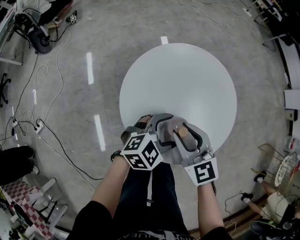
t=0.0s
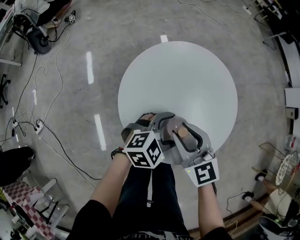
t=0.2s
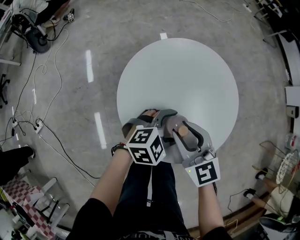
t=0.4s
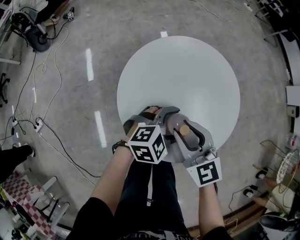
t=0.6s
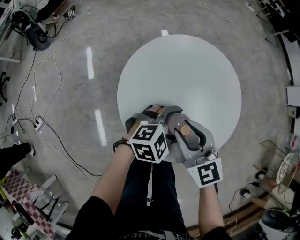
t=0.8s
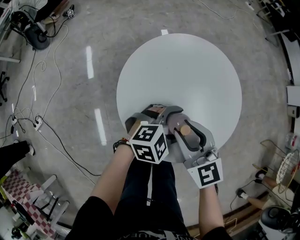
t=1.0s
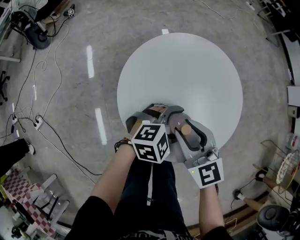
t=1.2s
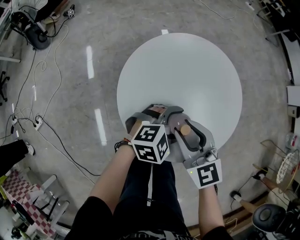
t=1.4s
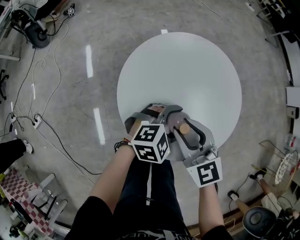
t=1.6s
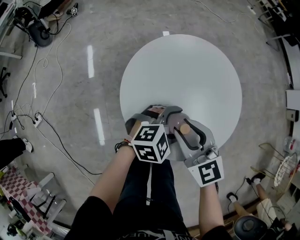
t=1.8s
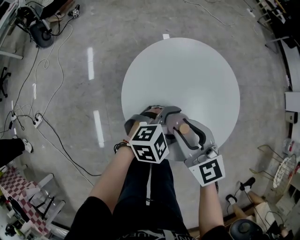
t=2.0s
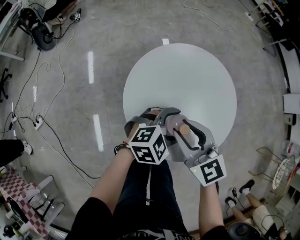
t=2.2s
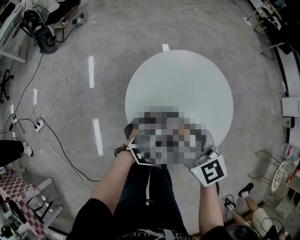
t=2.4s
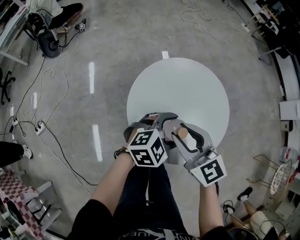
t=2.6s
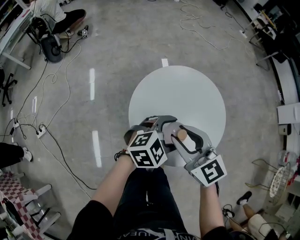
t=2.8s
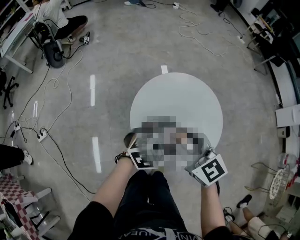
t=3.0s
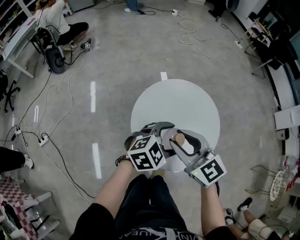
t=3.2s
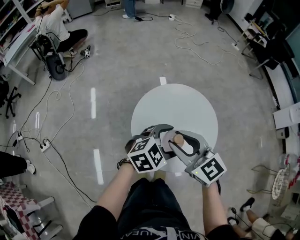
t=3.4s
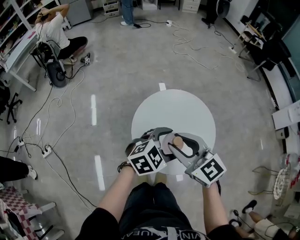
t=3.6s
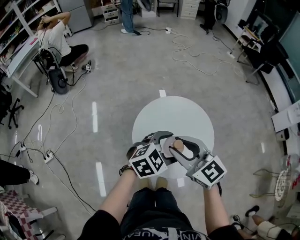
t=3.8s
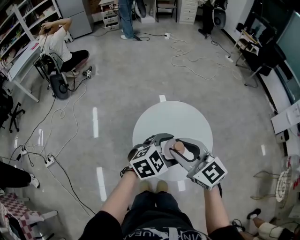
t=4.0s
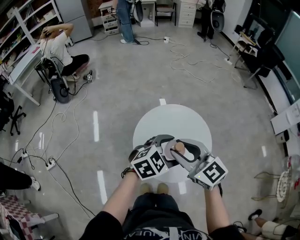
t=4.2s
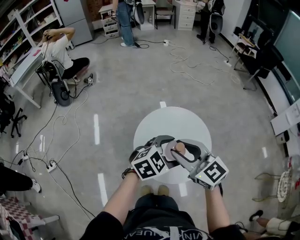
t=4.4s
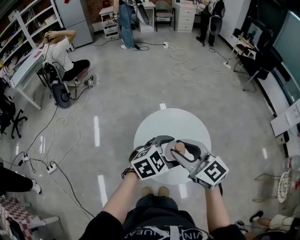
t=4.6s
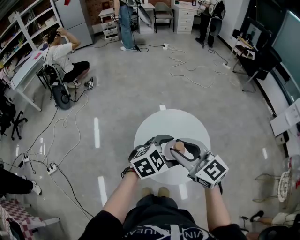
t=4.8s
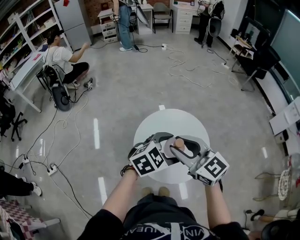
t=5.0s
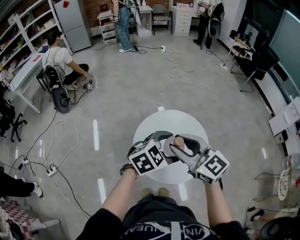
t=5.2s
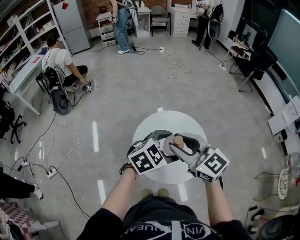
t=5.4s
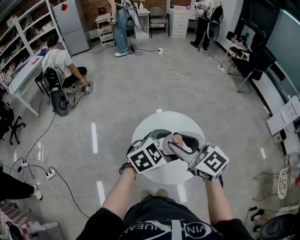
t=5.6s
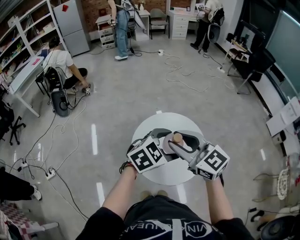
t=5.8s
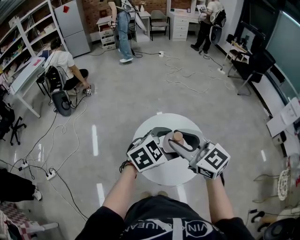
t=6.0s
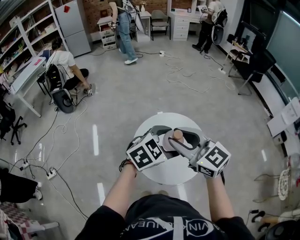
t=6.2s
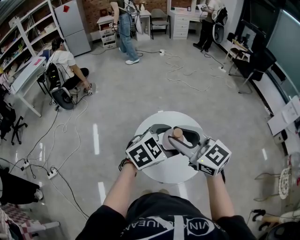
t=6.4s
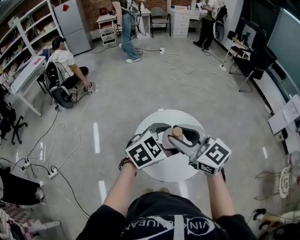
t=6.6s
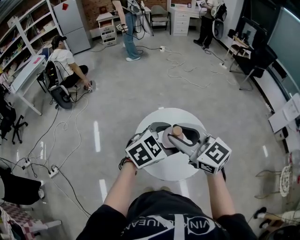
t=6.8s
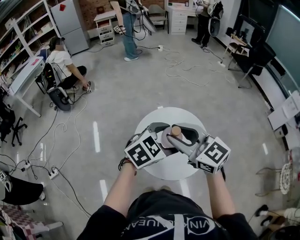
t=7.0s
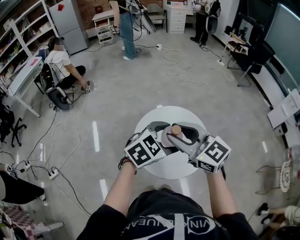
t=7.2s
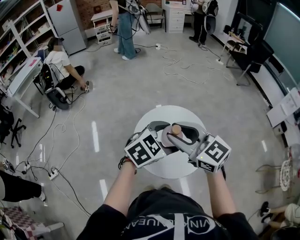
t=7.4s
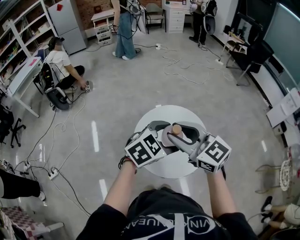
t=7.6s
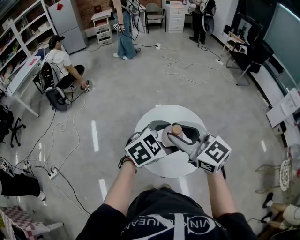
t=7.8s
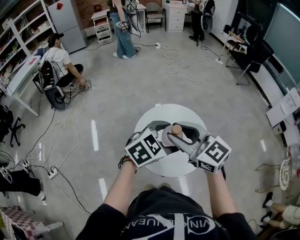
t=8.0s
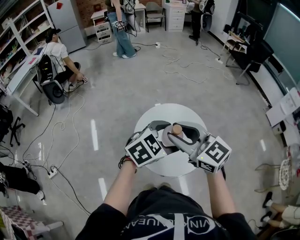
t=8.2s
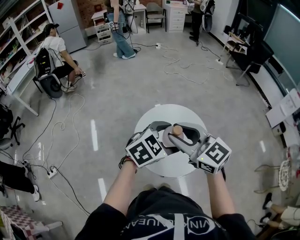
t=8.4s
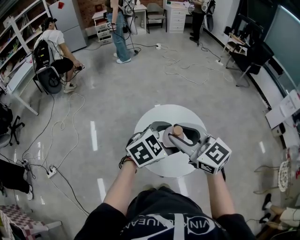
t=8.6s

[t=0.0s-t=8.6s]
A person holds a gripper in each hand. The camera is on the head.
t=0.0s to t=1.4s: The grippers stay close to where they were, moving slightly.
t=1.4s to t=2.8s: The two grippers go approximately 10 cm upward.
t=2.8s to t=4.4s: Both grippers travel together upward, roughly 15 cm.
t=4.4s to t=5.8s: Both grippers travel together upward, roughly 5 cm.
t=5.8s to t=7.2s: The grippers stay close to where they were, moving slightly.
t=7.2s to t=8.6s: The two grippers keep their place.

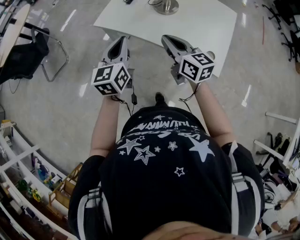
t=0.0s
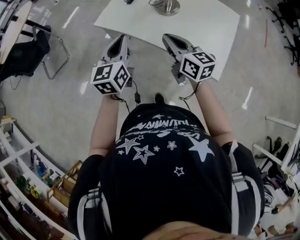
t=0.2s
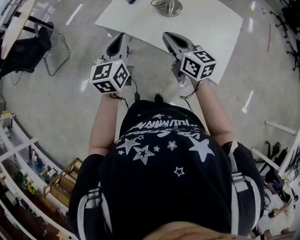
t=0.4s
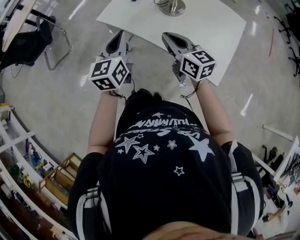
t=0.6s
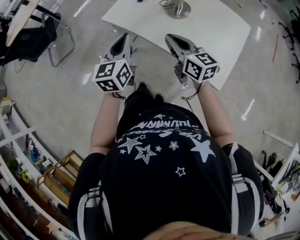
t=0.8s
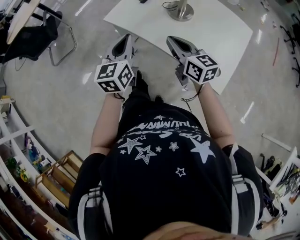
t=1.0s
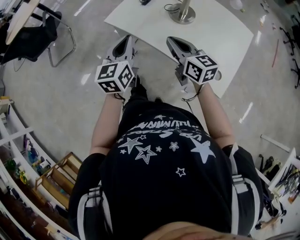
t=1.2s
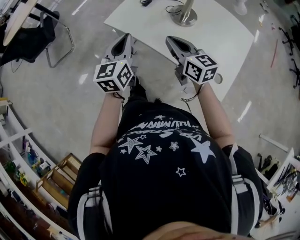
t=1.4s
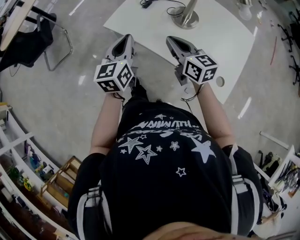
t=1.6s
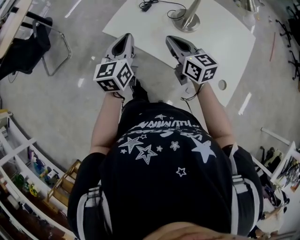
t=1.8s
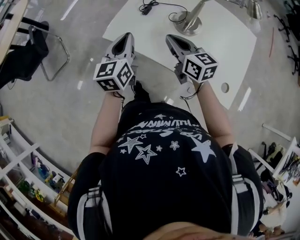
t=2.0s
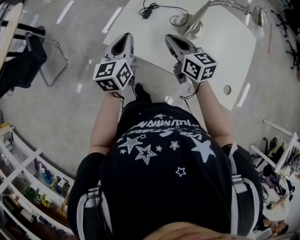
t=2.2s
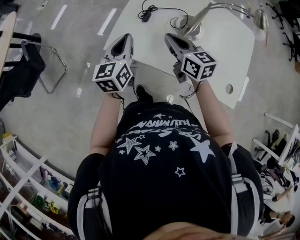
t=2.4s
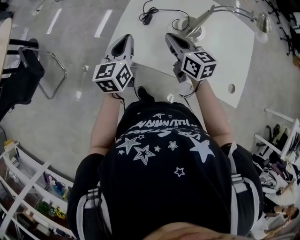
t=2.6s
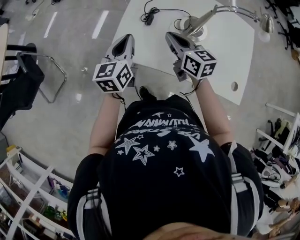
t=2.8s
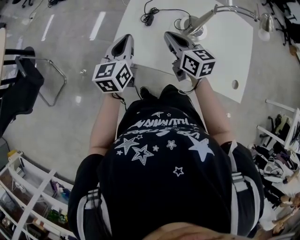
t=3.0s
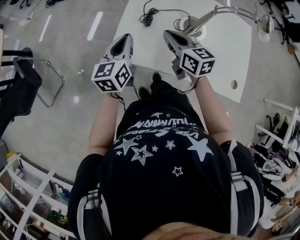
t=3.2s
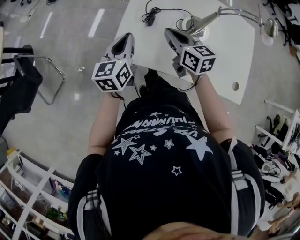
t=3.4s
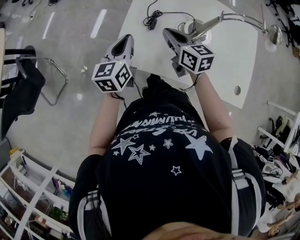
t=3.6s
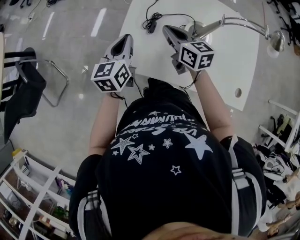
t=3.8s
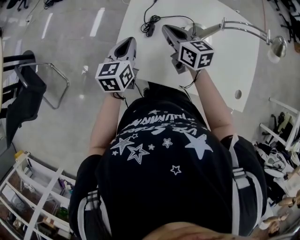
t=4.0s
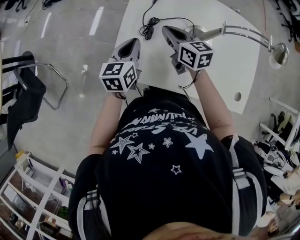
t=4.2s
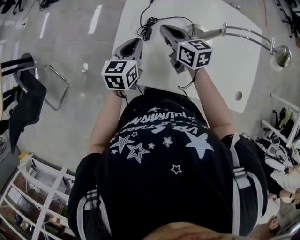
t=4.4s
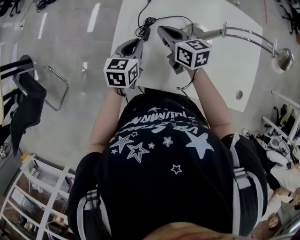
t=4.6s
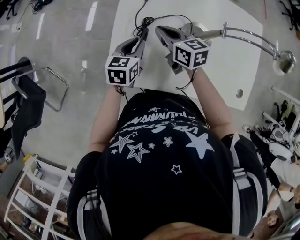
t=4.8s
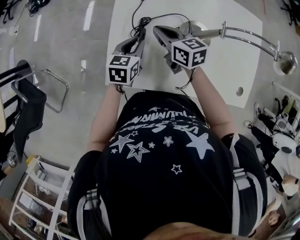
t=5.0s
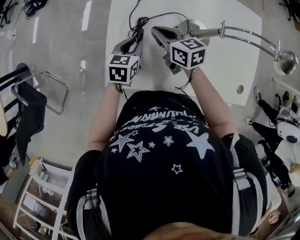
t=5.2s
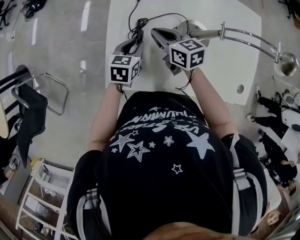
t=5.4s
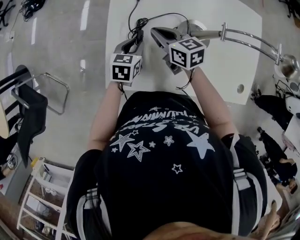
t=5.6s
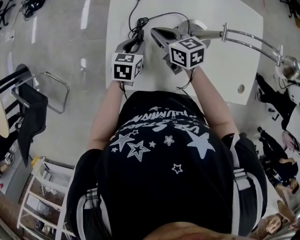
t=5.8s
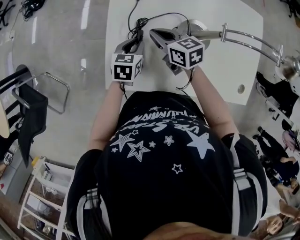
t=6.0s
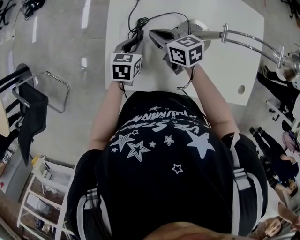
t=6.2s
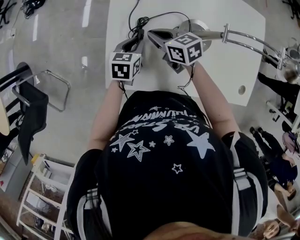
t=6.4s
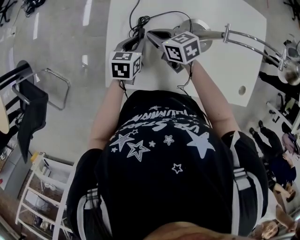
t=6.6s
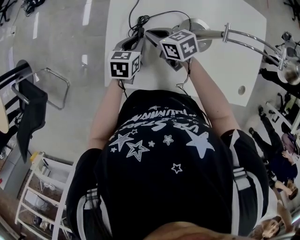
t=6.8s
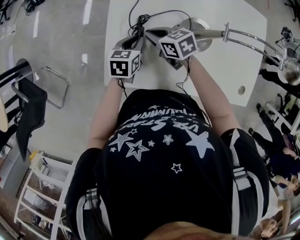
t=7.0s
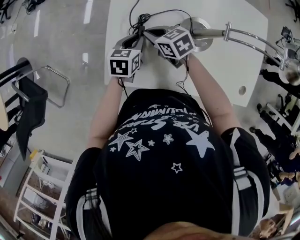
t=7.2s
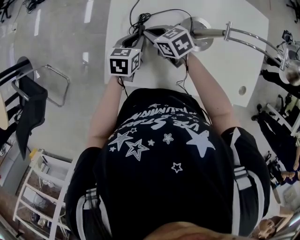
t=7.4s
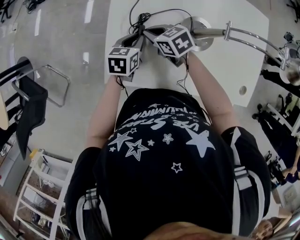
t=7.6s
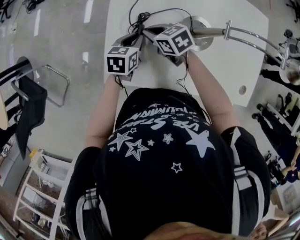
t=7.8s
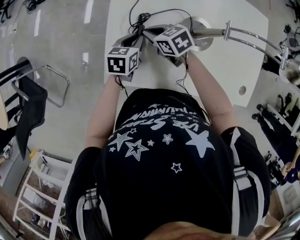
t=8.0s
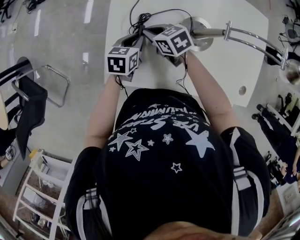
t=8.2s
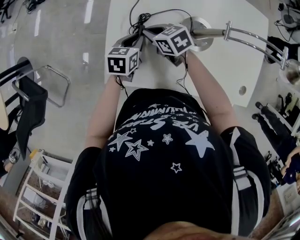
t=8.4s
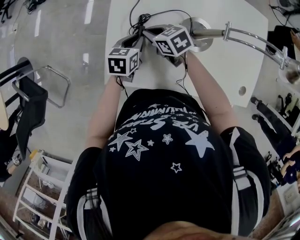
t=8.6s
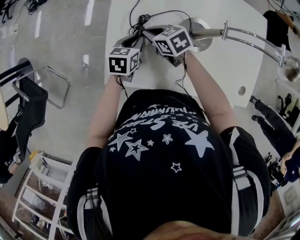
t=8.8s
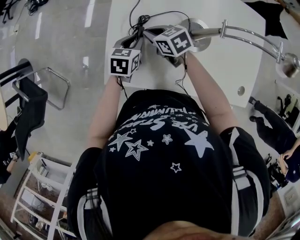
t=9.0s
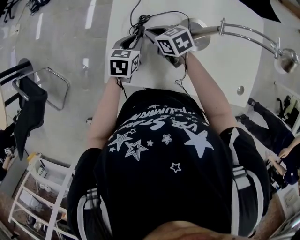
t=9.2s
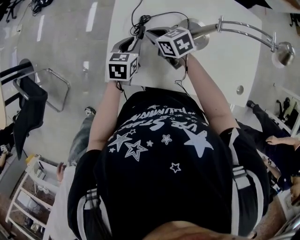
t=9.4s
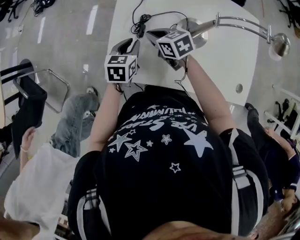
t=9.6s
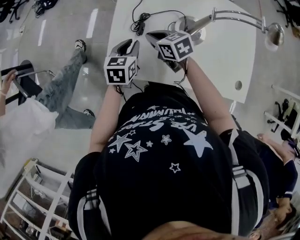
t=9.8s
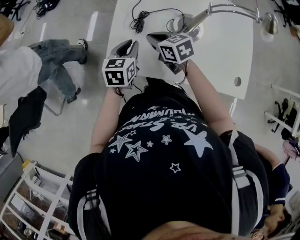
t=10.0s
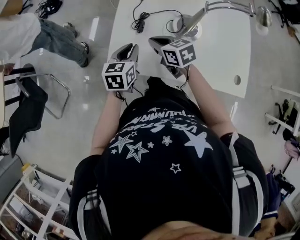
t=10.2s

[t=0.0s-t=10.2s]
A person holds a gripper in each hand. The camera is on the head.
t=0.0s to t=1.4s: Both grippers move forward, some 5 cm.
t=1.4s to t=3.0s: The grippers both shift forward by roughly 20 cm. The left gripper rotates roughly 20 degrees, while the right gripper swivels about 20 degrees.
t=3.0s to t=4.4s: The left gripper goes roughly 10 cm forward, downward and to the right, while the right gripper heads forward, covering some 10 cm.
t=4.4s to t=5.8s: The right gripper travels downward by about 5 cm, while the left gripper is displaced downward by some 10 cm, and changes its angle by approximately 20 degrees.
t=5.8s to t=7.2s: The right gripper shifts by about 5 cm.
t=7.2s to t=8.8s: Both grippers stay put.
t=8.8s to t=10.2s: The left gripper is displaced backward, upward and to the left by some 15 cm. Meanwhile the right gripper shifts some 10 cm backward and upward.

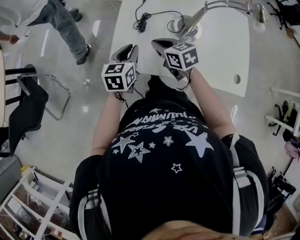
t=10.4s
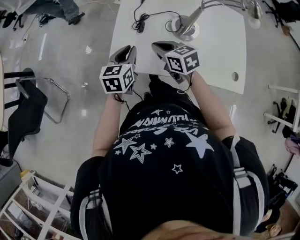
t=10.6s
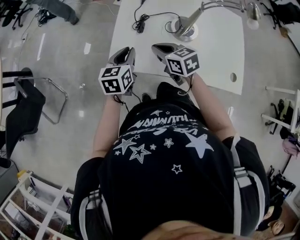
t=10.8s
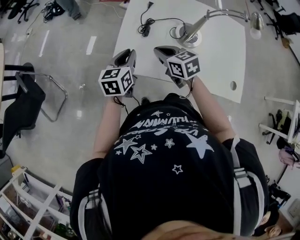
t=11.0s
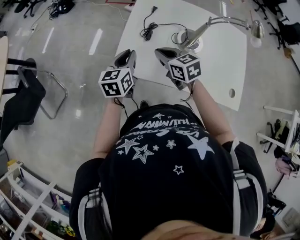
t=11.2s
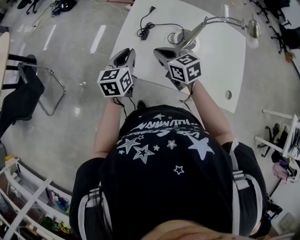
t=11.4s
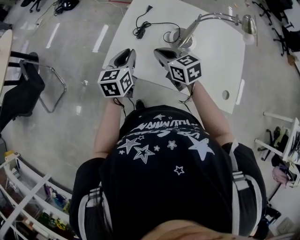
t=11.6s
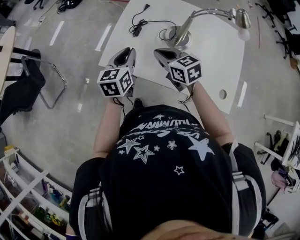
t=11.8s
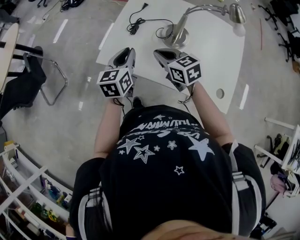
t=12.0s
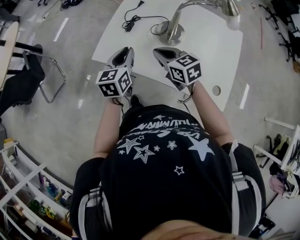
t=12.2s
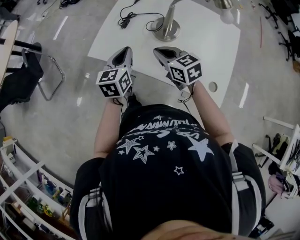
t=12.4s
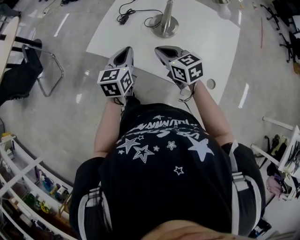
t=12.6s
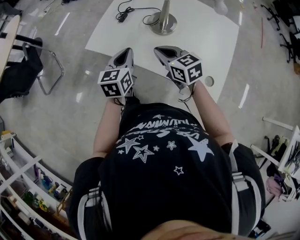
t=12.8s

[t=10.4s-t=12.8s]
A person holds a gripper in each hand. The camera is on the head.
t=10.4s to t=11.6s: The right gripper moves some 5 cm; the left gripper ends up approximately 5 cm from where it was.
t=11.6s to t=12.8s: Both grippers travel together backward and to the right, approximately 15 cm.

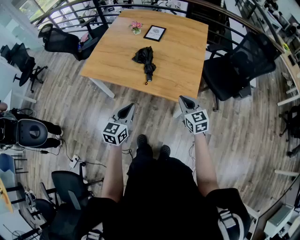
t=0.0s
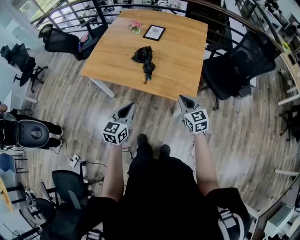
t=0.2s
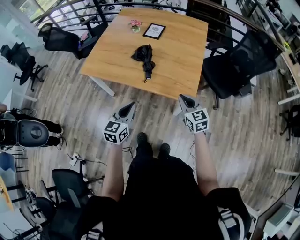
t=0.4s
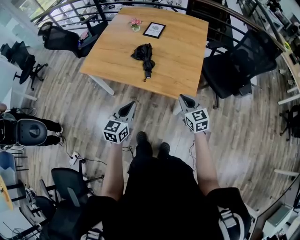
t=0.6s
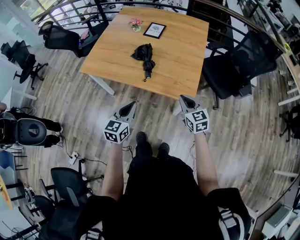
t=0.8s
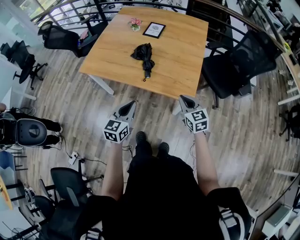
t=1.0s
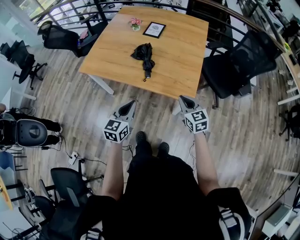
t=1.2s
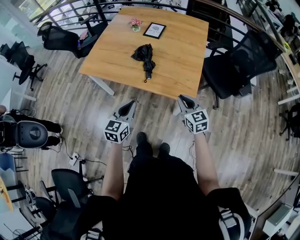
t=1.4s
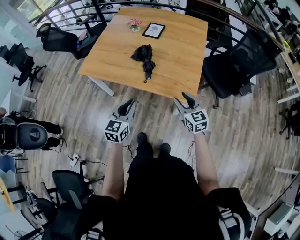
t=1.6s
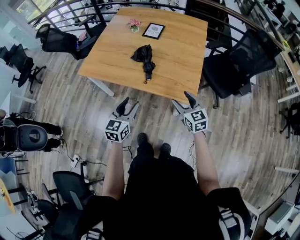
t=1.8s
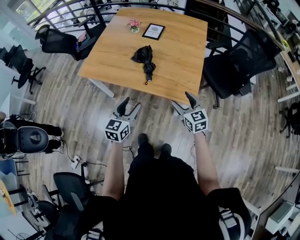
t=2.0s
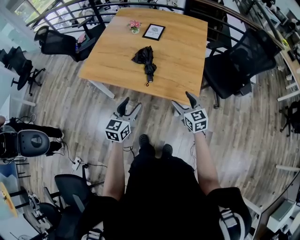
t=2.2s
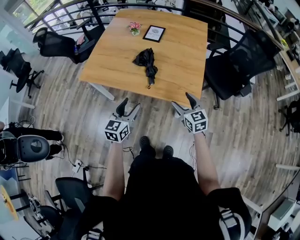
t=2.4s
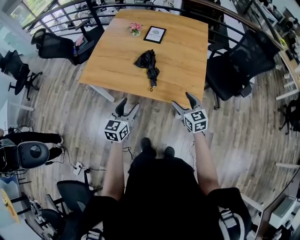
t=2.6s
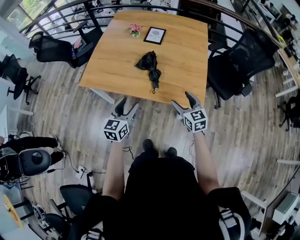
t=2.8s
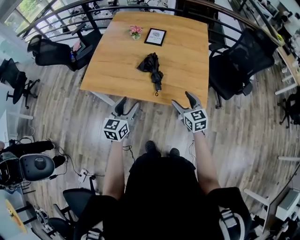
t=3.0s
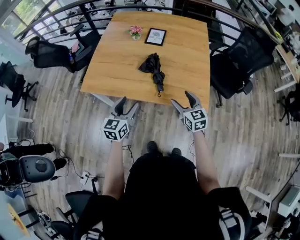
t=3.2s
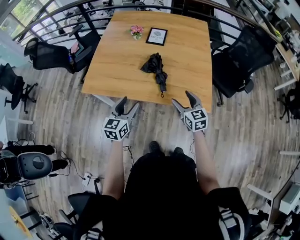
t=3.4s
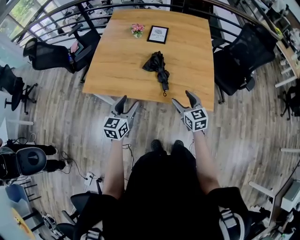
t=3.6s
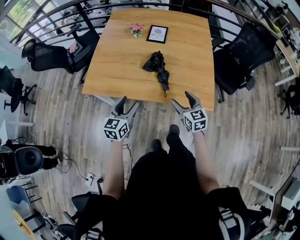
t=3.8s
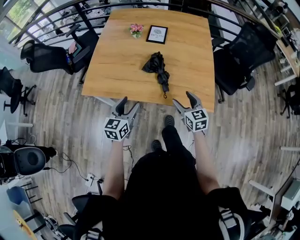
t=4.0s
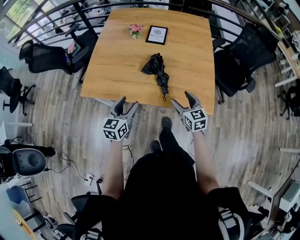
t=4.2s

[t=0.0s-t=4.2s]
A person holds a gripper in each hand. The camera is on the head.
t=0.0s to t=1.4s: There are only small adjustments of the grippers.
t=1.4s to t=2.8s: The two grippers go some 10 cm forward and to the left. The left gripper opens its fingers. The right gripper opens.
t=2.8s to t=4.2s: The right gripper shifts approximately 10 cm to the left and forward, while the left gripper heads forward and to the left, covering some 10 cm.
